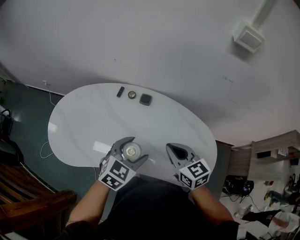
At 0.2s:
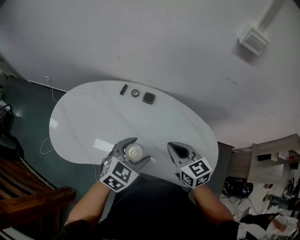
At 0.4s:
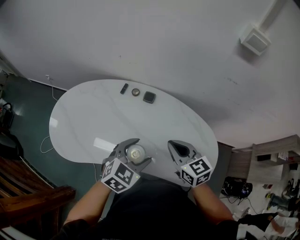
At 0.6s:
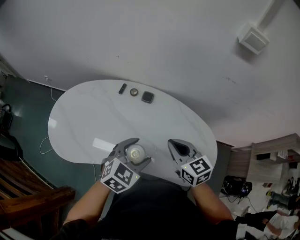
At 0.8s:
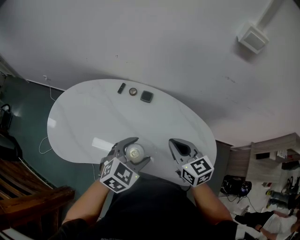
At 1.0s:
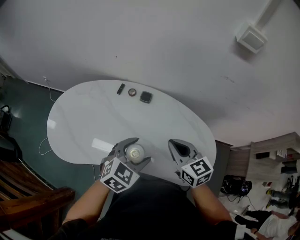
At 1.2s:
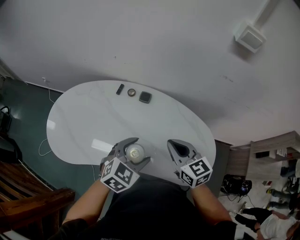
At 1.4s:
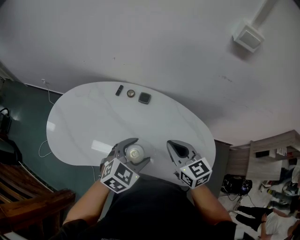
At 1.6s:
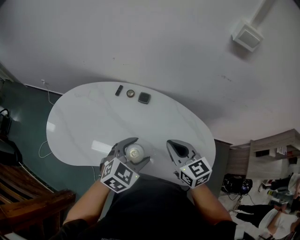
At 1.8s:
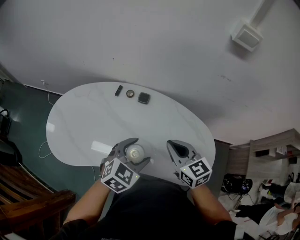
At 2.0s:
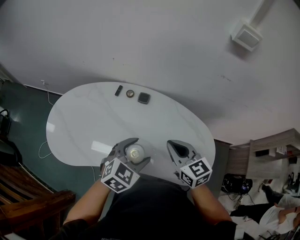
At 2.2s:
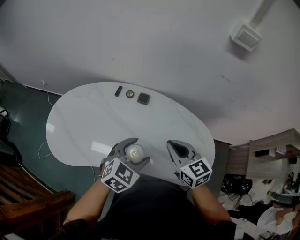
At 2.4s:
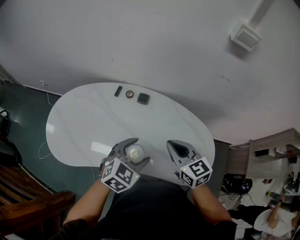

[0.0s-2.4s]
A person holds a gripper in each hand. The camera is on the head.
0.0s to 1.2s: The grippers move only a little.
1.2s to 2.4s: Both grippers stay put.

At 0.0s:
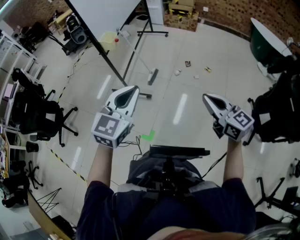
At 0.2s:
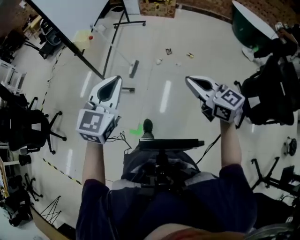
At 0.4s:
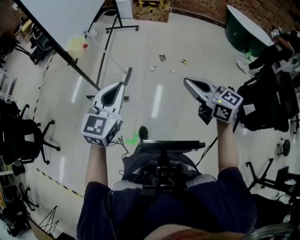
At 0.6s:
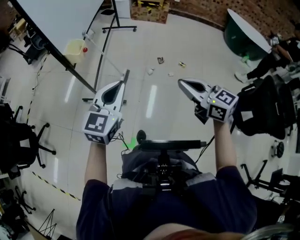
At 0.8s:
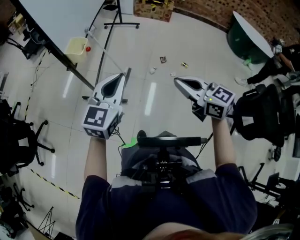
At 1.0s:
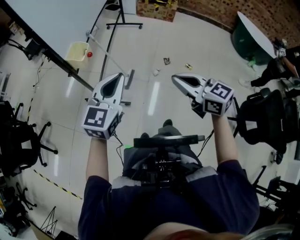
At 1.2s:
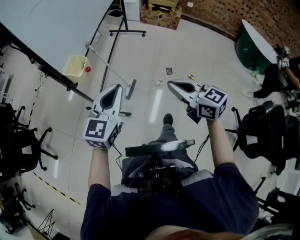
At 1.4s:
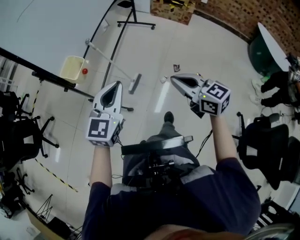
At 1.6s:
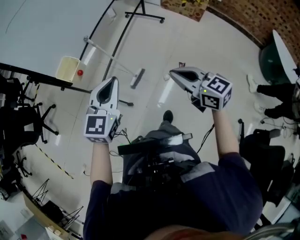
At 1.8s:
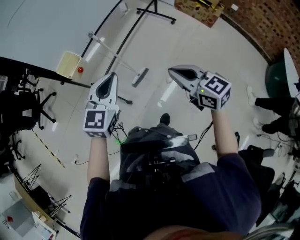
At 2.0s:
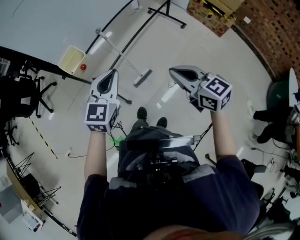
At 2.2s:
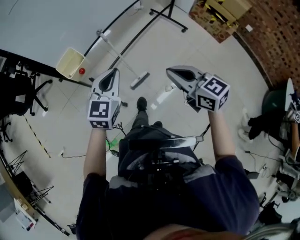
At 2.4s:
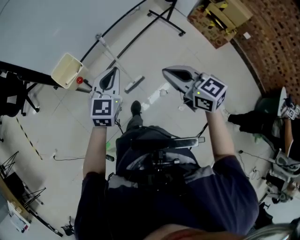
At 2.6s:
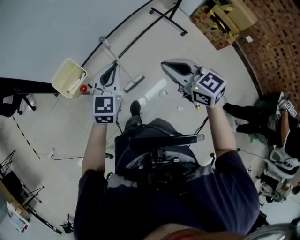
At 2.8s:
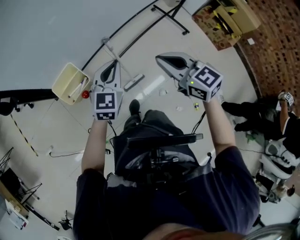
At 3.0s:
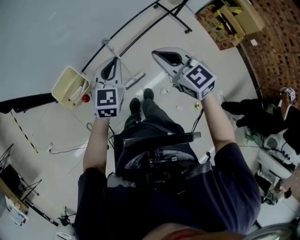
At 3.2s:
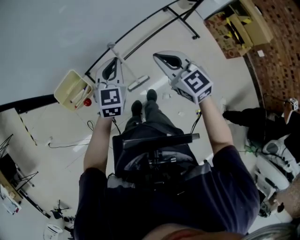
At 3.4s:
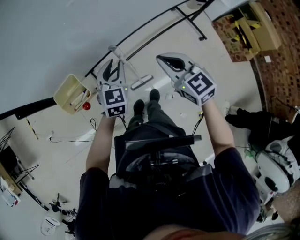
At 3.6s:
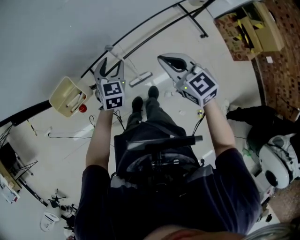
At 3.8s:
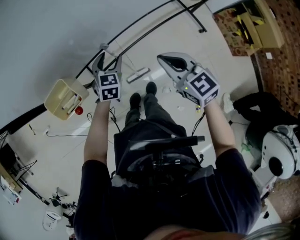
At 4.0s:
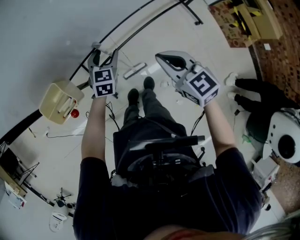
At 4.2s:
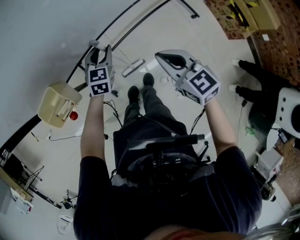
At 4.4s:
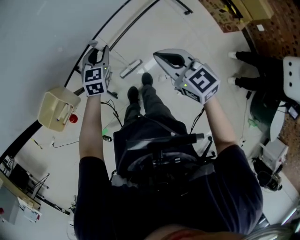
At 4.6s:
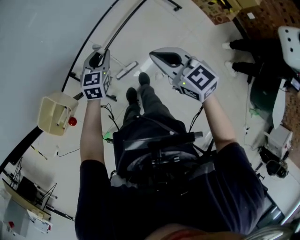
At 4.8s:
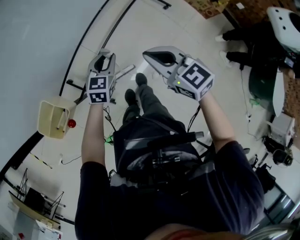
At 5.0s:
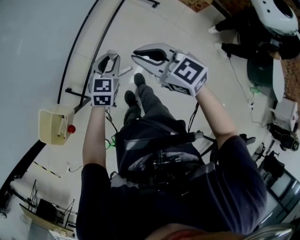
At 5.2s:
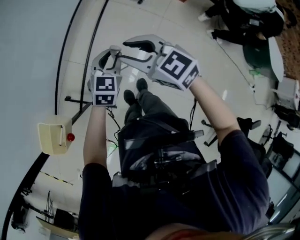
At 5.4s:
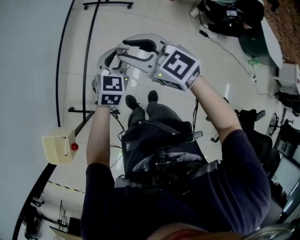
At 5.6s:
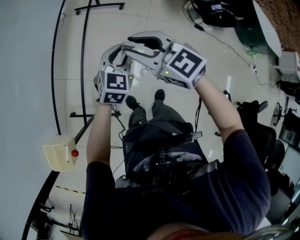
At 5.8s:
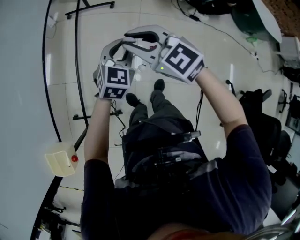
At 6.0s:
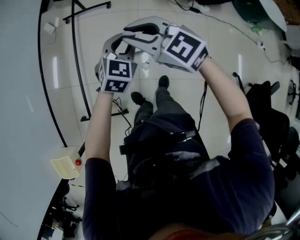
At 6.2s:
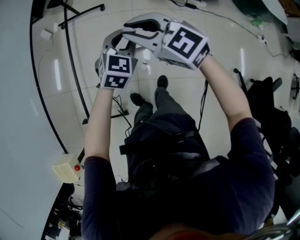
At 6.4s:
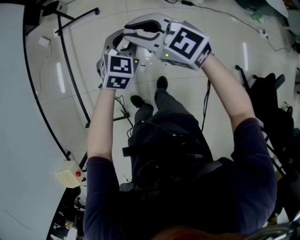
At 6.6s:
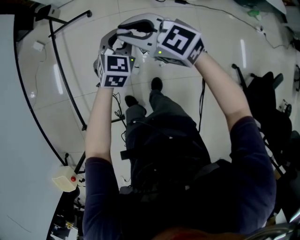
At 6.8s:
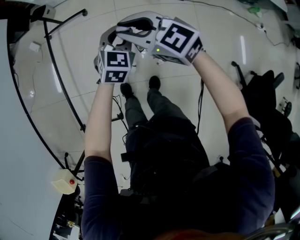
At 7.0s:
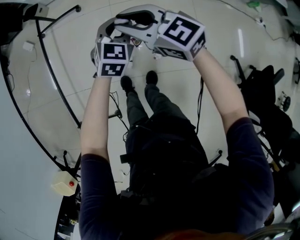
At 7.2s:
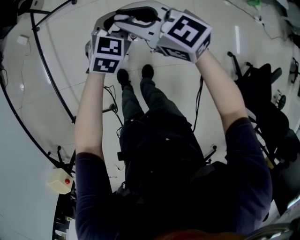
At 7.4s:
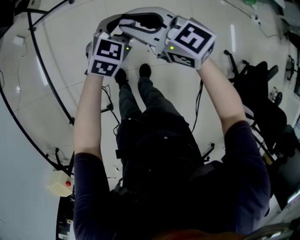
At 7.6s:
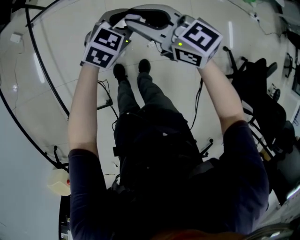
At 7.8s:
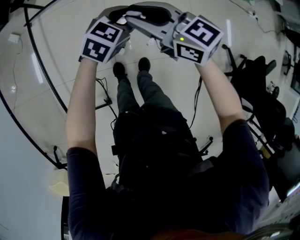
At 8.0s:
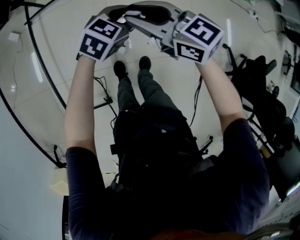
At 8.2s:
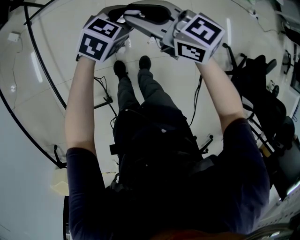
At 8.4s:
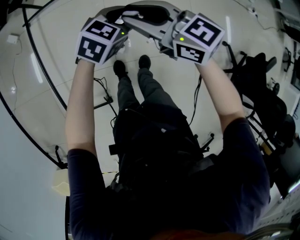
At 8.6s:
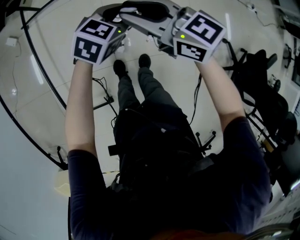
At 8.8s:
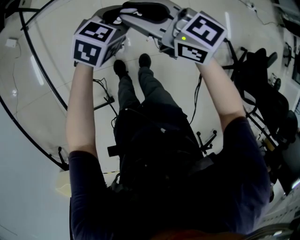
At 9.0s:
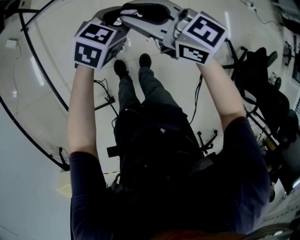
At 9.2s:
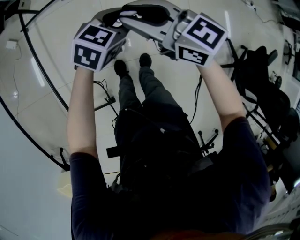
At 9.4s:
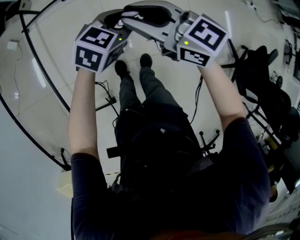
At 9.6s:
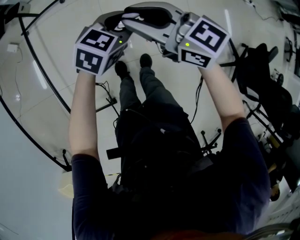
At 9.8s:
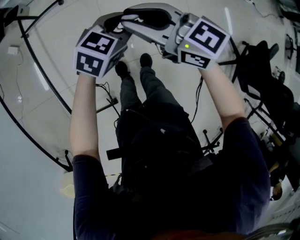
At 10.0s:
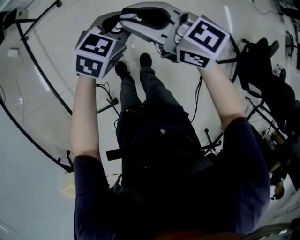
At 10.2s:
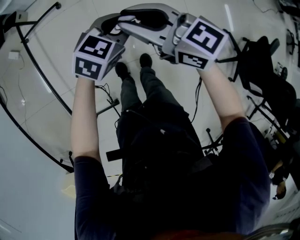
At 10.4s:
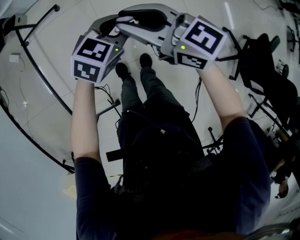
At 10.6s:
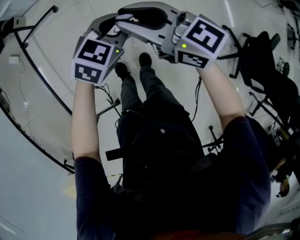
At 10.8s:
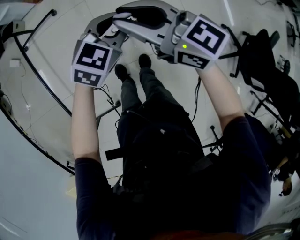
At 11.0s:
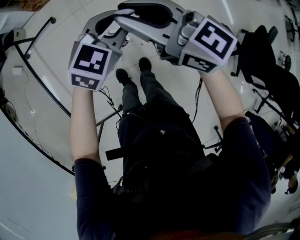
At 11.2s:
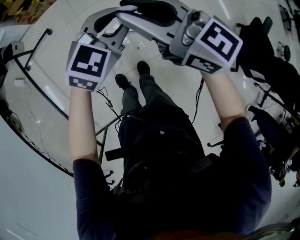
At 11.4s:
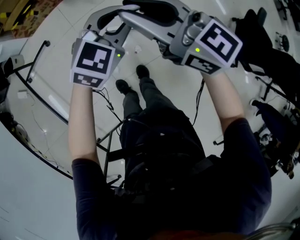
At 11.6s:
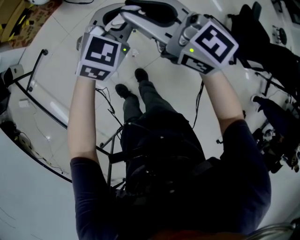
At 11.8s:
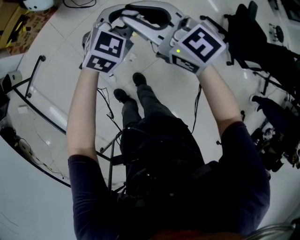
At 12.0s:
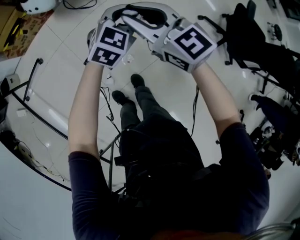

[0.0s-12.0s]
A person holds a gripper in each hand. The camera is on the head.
0.0s to 1.6s: Both grippers are carried forward, some 60 cm. The left gripper turns by about 20 degrees. The right gripper rotates about 30 degrees.
1.6s to 3.0s: The right gripper is displaced forward by approximately 40 cm, and turns by roughly 30 degrees. The left gripper goes some 35 cm forward and downward, and rotates some 30 degrees.
3.0s to 4.4s: The left gripper is displaced downward and forward by some 20 cm, and opens up, while the right gripper moves downward and to the right, about 10 cm.
4.4s to 6.0s: The right gripper changes place by approximately 25 cm, changes its angle by roughly 30 degrees, and opens, then closes once more. Meanwhile the left gripper ends up about 50 cm from where it was, and turns by roughly 70 degrees.
6.0s to 7.6s: The two grippers go approximately 25 cm to the right and downward. The right gripper swivels roughly 30 degrees, while the left gripper rotates approximately 30 degrees.
7.6s to 9.0s: There are only small adjustments of the grippers.
9.0s to 10.4s: The left gripper moves about 5 cm, while the right gripper ends up some 5 cm from where it was.
10.4s to 12.0s: Both grippers travel together to the right and forward, about 25 cm. The left gripper changes its angle by about 30 degrees, while the right gripper swivels roughly 30 degrees.

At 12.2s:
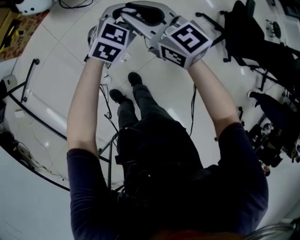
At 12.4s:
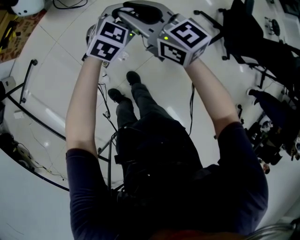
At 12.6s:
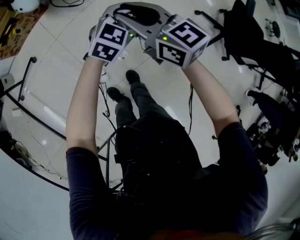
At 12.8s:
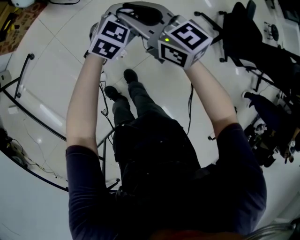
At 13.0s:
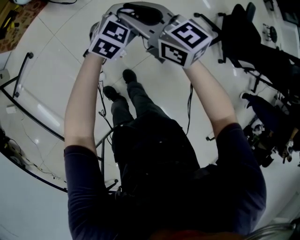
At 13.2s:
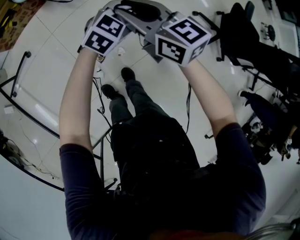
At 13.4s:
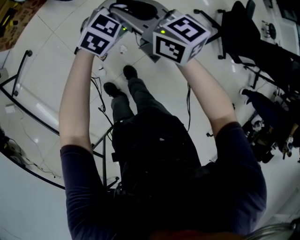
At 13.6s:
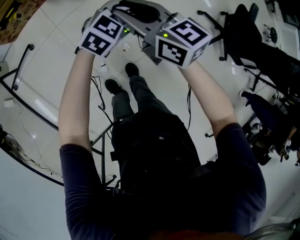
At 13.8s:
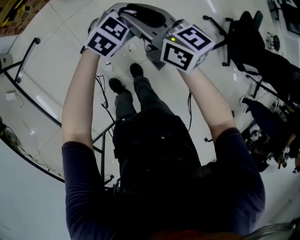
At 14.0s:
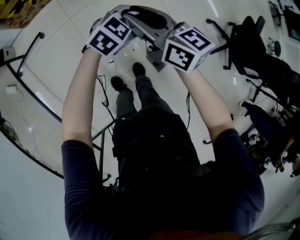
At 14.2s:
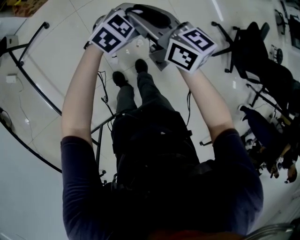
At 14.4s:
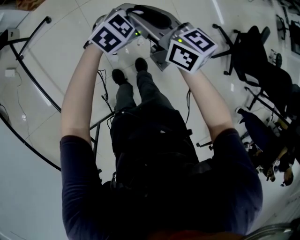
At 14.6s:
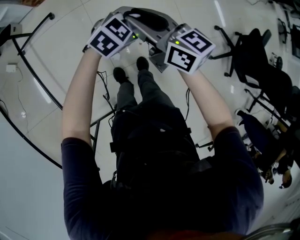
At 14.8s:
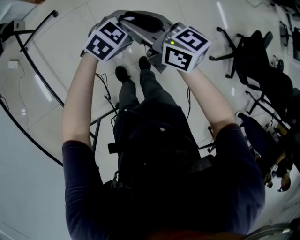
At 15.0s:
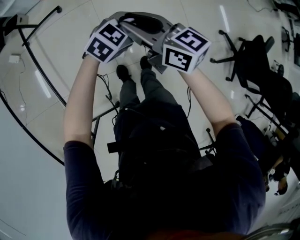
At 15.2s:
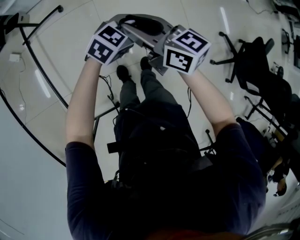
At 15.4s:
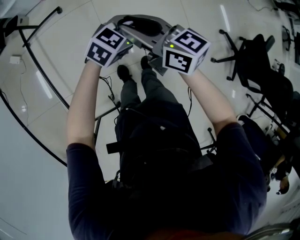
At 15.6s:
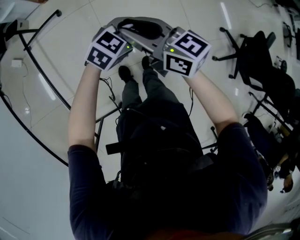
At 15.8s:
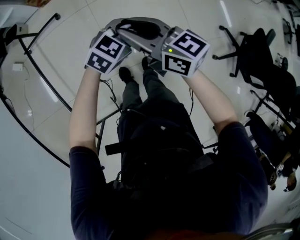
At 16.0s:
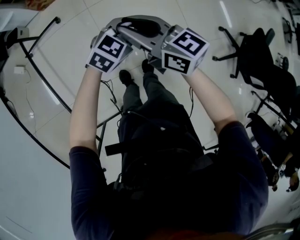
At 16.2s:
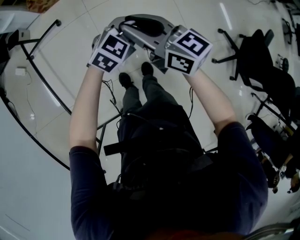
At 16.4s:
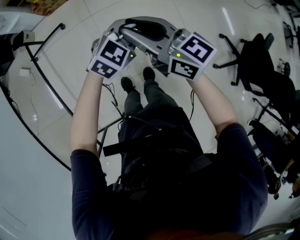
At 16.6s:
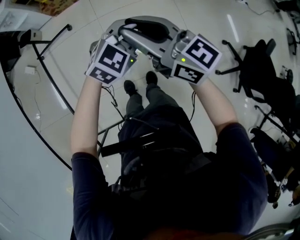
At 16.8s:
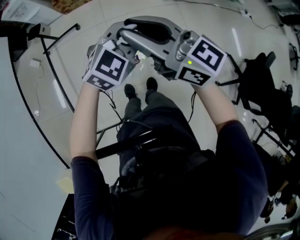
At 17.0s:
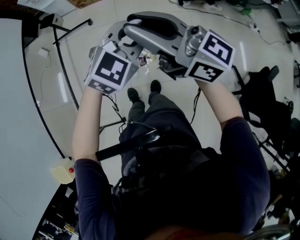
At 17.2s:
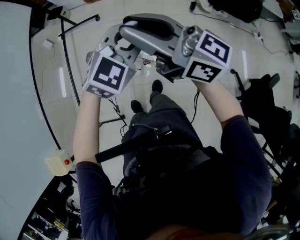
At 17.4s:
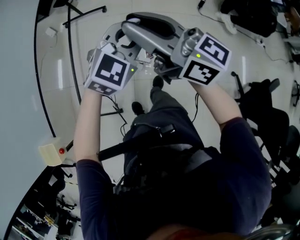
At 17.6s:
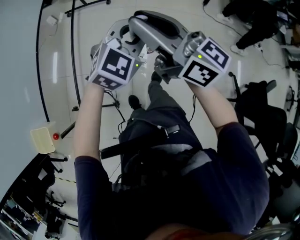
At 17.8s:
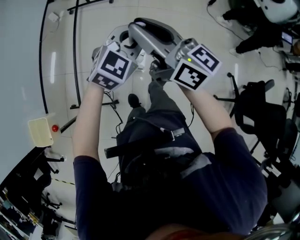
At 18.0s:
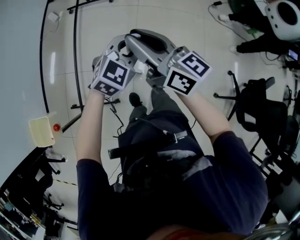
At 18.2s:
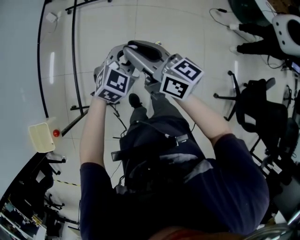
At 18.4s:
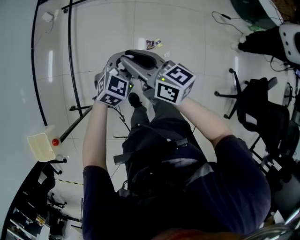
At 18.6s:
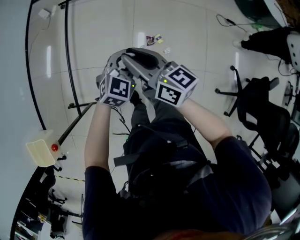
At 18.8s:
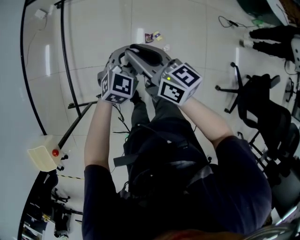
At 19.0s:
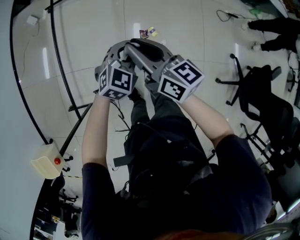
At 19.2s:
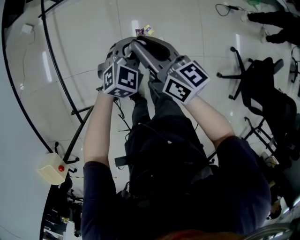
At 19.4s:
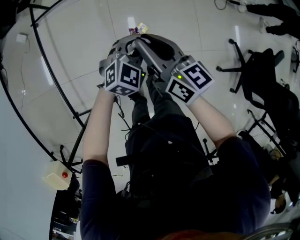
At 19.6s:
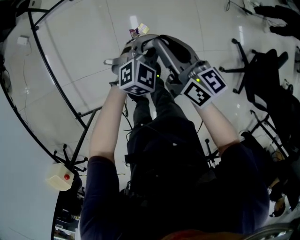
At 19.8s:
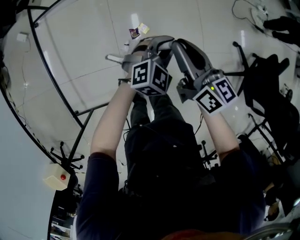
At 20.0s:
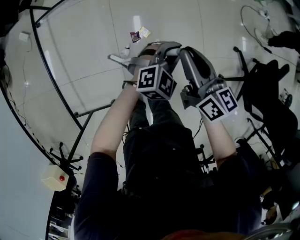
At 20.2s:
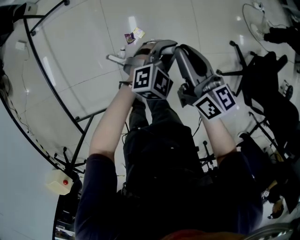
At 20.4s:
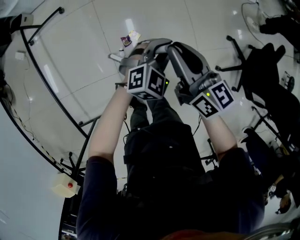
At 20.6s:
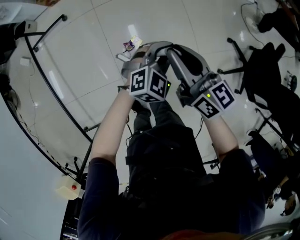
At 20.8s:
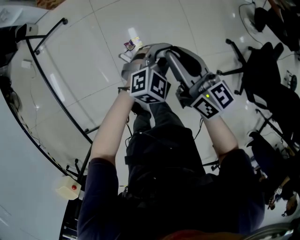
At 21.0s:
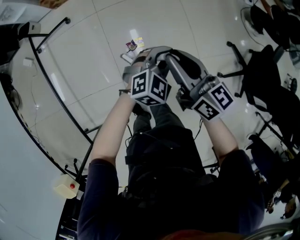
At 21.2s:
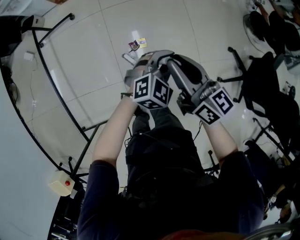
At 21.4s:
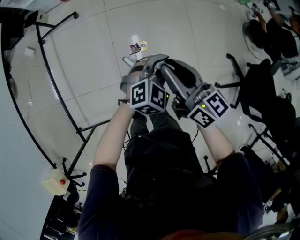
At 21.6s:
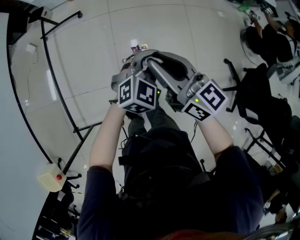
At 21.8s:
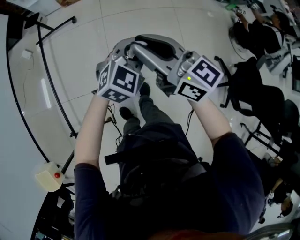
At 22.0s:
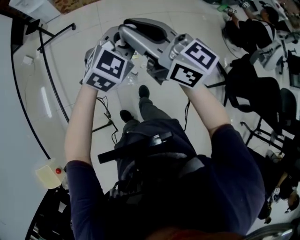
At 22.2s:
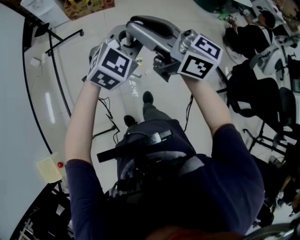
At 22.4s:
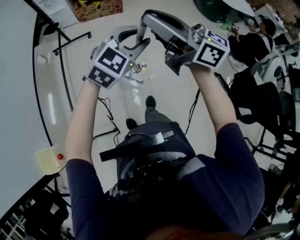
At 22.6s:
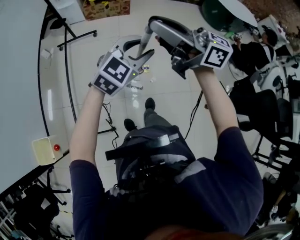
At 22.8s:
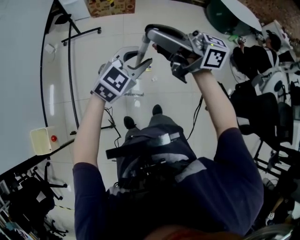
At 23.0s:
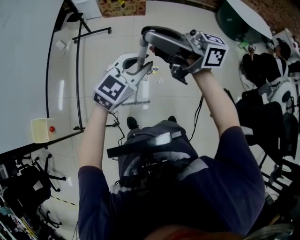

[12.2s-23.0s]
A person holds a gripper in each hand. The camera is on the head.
12.2s to 13.8s: The left gripper is displaced to the left and backward by about 10 cm; the right gripper shifts about 10 cm to the left.
13.8s to 15.2s: The two grippers go some 15 cm to the left and backward. The right gripper turns by approximately 20 degrees.
15.2s to 16.8s: Both grippers move upward, approximately 20 cm. The right gripper changes its angle by some 20 degrees. Meanwhile the left gripper changes its angle by roughly 30 degrees.
16.8s to 18.4s: Both grippers travel together to the left, backward and downward, about 35 cm. The right gripper turns by approximately 20 degrees; the left gripper rotates some 30 degrees.
18.4s to 20.0s: The right gripper moves about 35 cm, and rotates roughly 30 degrees, while the left gripper changes place by approximately 35 cm, and swivels approximately 30 degrees.
20.0s to 21.4s: Both grippers move upward, about 5 cm.
21.4s to 23.0s: Both grippers travel together upward, about 25 cm. The right gripper angles its fingers upward, by roughly 30 degrees. Meanwhile the left gripper changes its angle by some 20 degrees.
